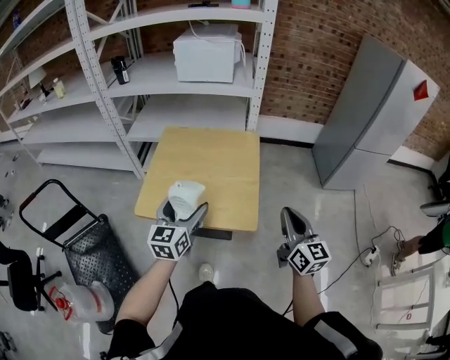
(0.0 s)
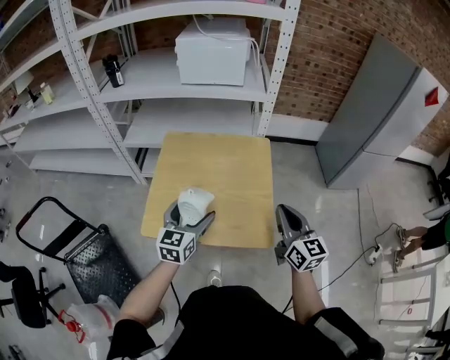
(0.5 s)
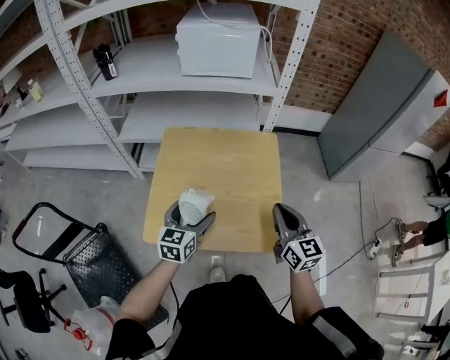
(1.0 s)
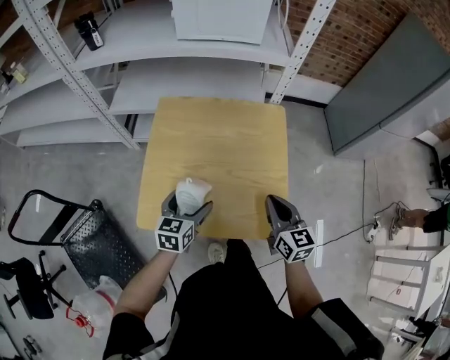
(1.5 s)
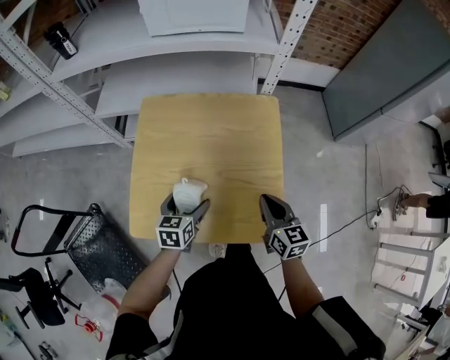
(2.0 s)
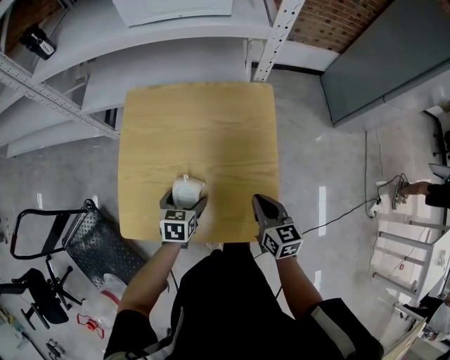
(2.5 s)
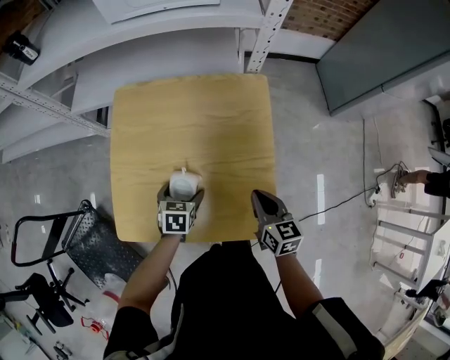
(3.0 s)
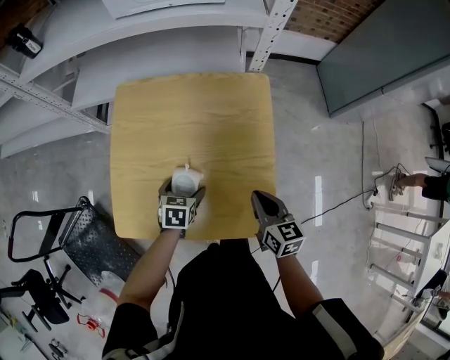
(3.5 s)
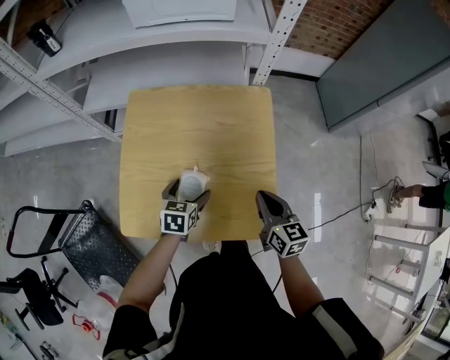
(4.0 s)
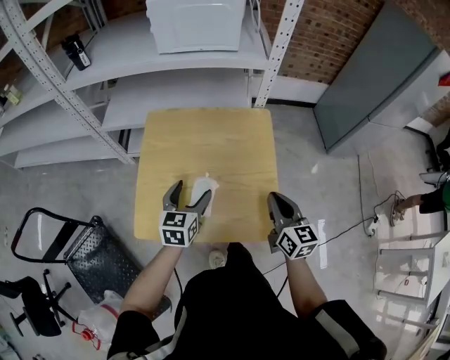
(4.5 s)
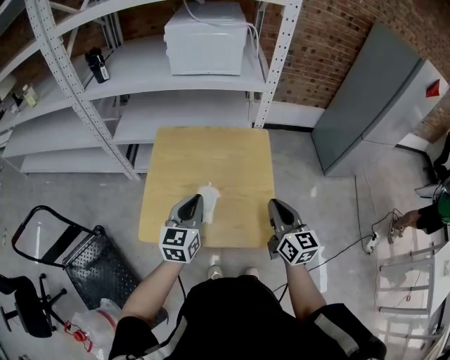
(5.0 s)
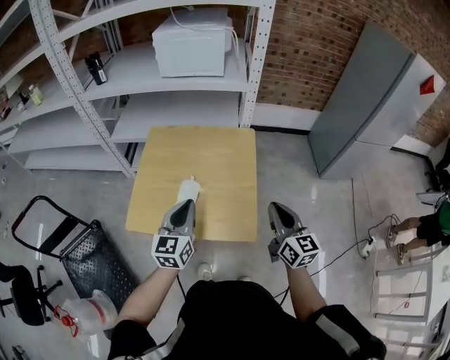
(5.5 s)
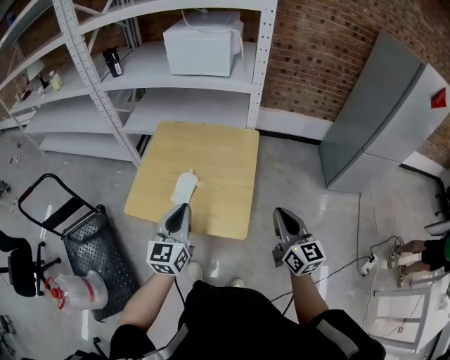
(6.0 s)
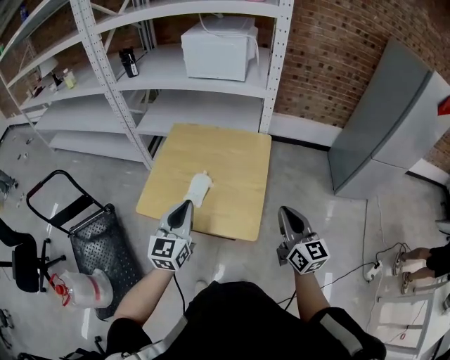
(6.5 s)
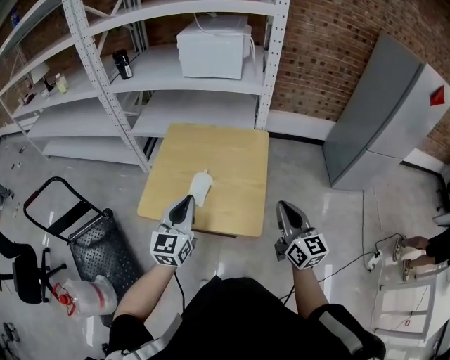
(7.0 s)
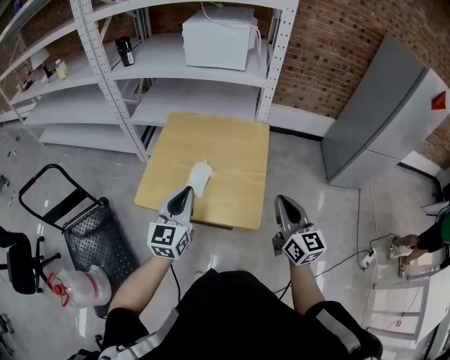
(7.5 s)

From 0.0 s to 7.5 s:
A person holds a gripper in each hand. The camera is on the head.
From 0.0 s to 2.0 s: The left gripper is displaced downward and forward by about 30 cm, and tilts its fingers some 30 degrees downward. Meanwhile the right gripper heads forward, downward and to the left, covering some 30 cm, and turns by some 20 degrees.
From 4.0 s to 5.5 s: The left gripper shifts roughly 25 cm upward and backward, tips its fingers upward by approximately 40 degrees, and closes. Meanwhile the right gripper goes some 20 cm upward, backward and to the right.
From 5.5 s to 7.5 s: The right gripper changes place by some 5 cm; the left gripper is displaced backward by roughly 5 cm.

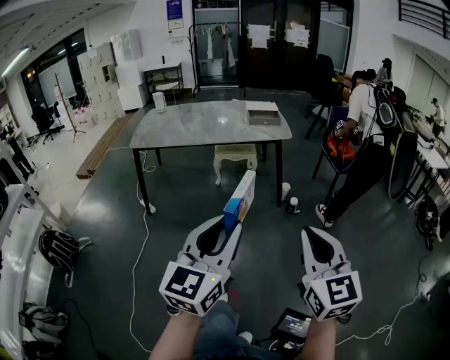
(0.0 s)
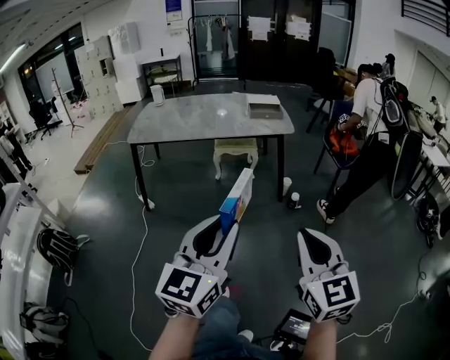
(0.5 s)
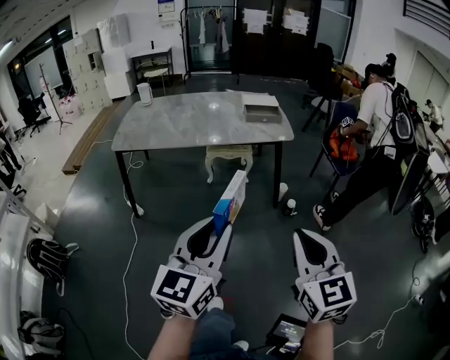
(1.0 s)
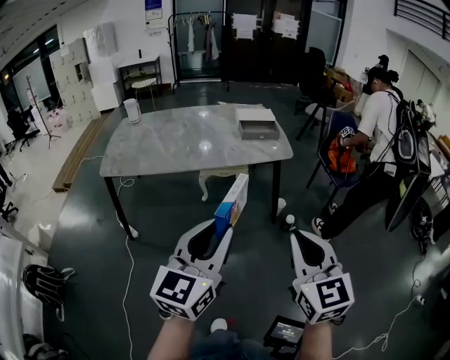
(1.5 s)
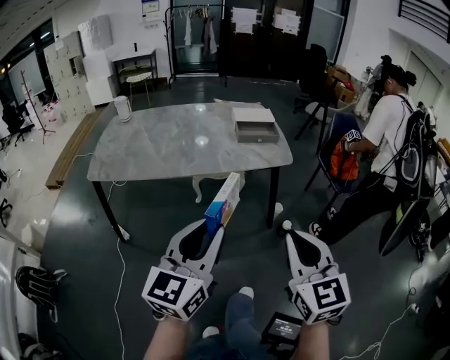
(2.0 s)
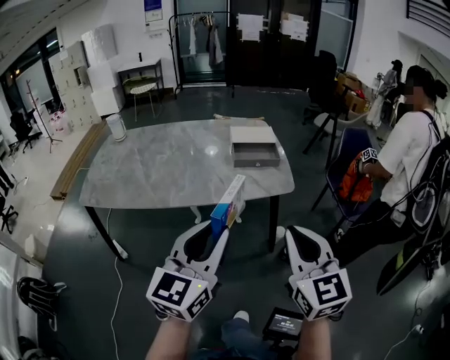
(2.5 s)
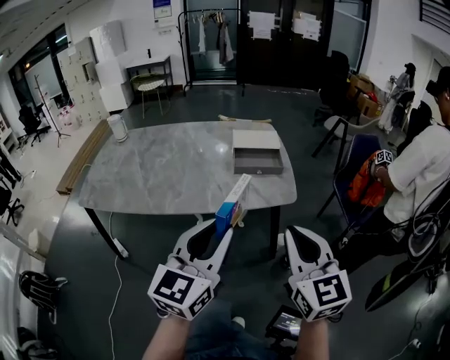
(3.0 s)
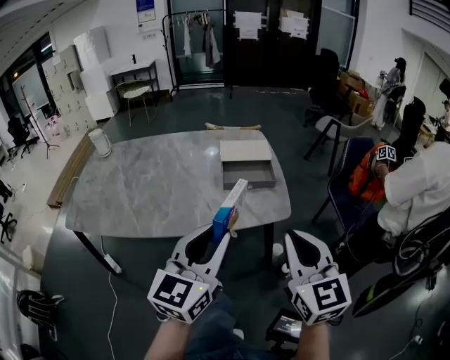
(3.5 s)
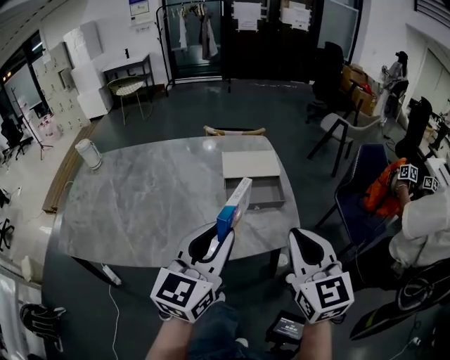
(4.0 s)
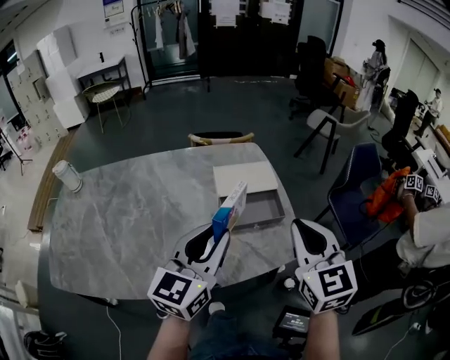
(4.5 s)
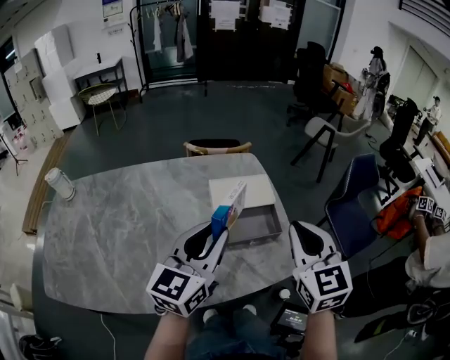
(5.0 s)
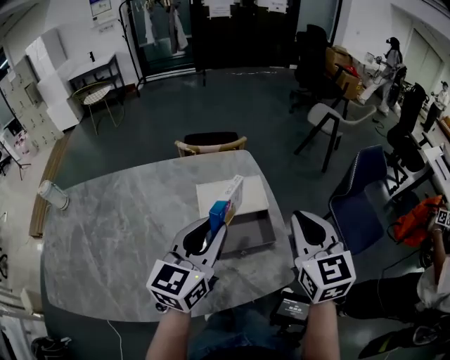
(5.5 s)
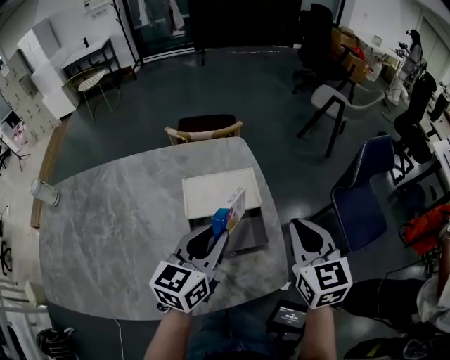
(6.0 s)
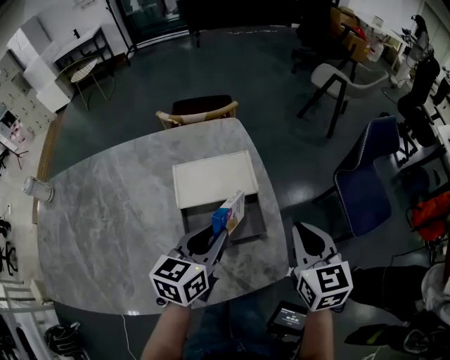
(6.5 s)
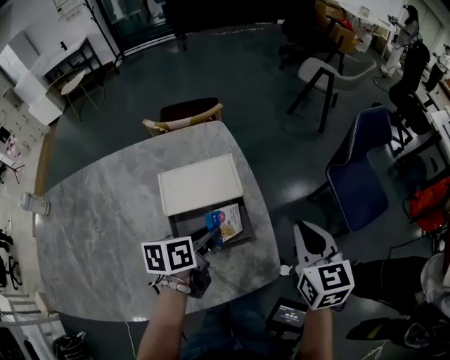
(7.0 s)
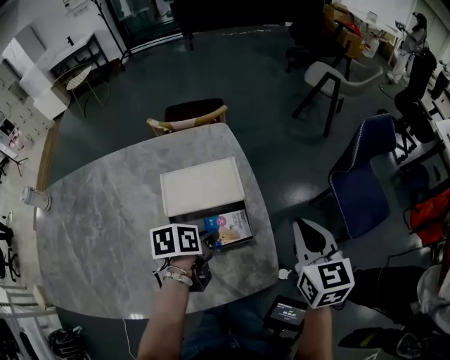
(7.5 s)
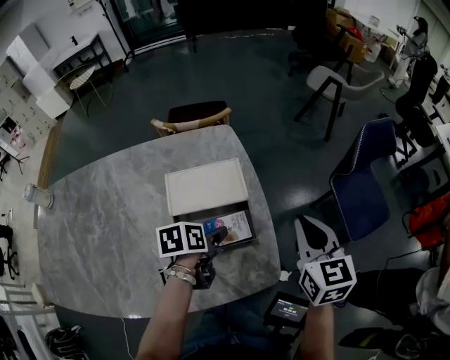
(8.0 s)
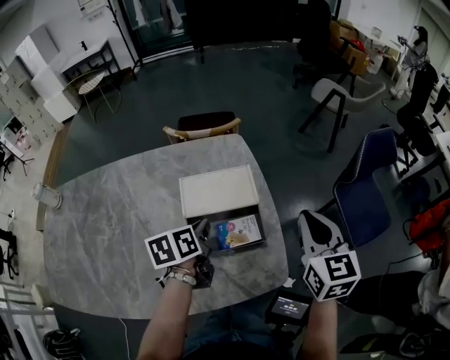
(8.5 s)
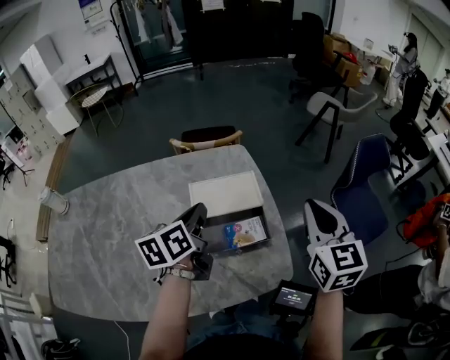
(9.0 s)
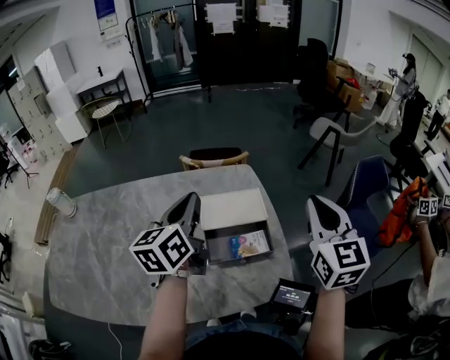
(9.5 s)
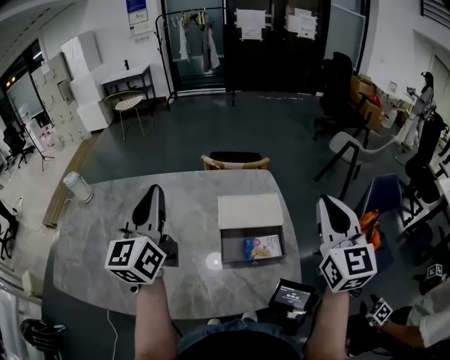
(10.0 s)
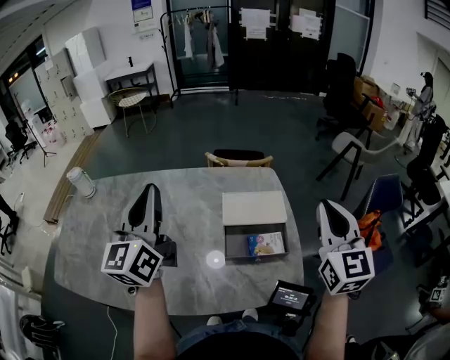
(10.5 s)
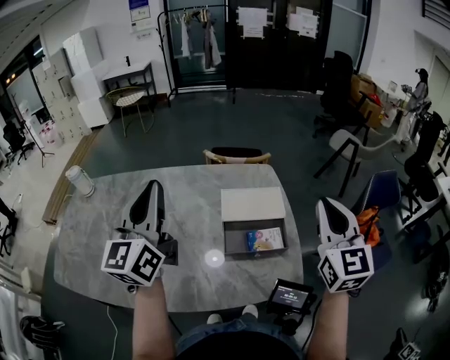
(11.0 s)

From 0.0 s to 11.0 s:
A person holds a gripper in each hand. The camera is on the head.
From 0.0 s to 2.0 s: Both grippers move forward, about 35 cm.
From 2.0 s to 3.5 s: Both grippers travel together forward, roughly 30 cm.
From 3.5 s to 5.5 s: The grippers both shift forward by roughly 35 cm.
From 5.5 s to 7.5 s: The left gripper heads downward, covering about 25 cm, and tips its fingers downward by some 40 degrees, while the right gripper moves downward and to the right, about 15 cm.
From 7.5 s to 9.0 s: The left gripper is displaced upward and to the left by approximately 20 cm, turns by about 40 degrees, and opens and closes again. The right gripper shifts roughly 10 cm upward.
From 9.0 s to 11.0 s: The left gripper travels upward, to the left and backward by some 25 cm, and points its fingers about 40 degrees further upward. The right gripper is displaced upward and to the left by roughly 10 cm.

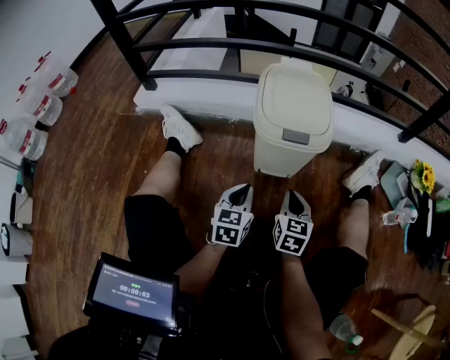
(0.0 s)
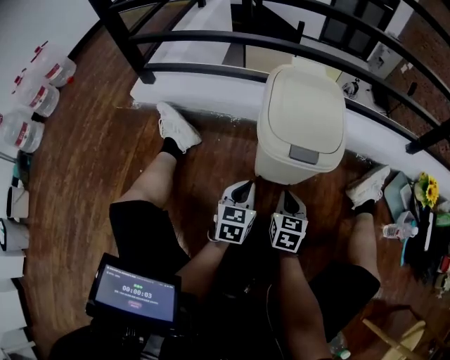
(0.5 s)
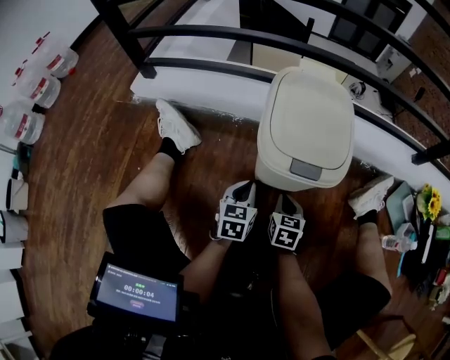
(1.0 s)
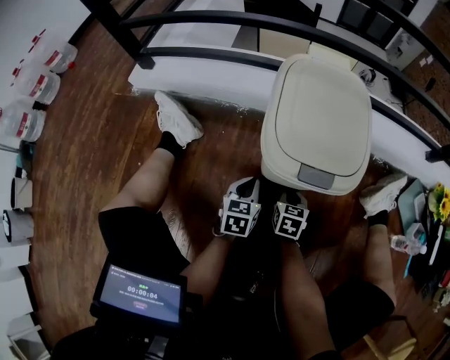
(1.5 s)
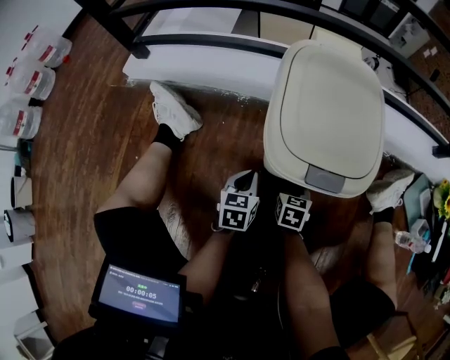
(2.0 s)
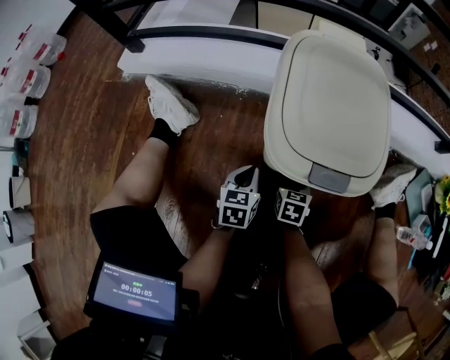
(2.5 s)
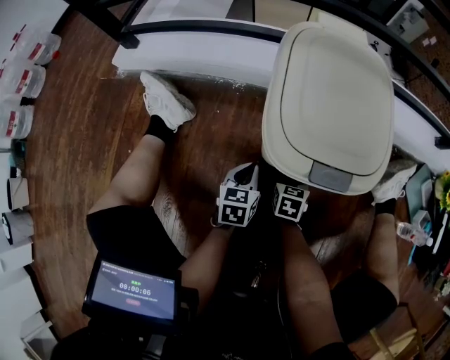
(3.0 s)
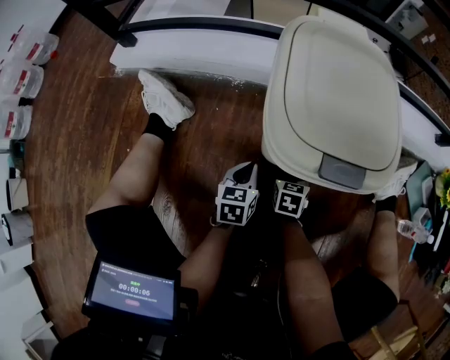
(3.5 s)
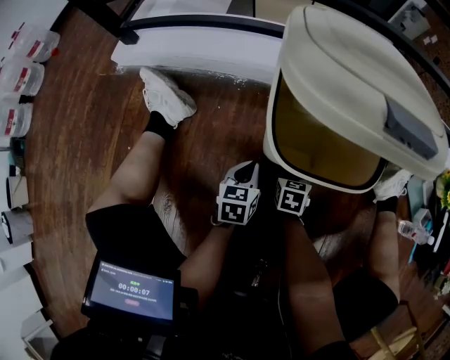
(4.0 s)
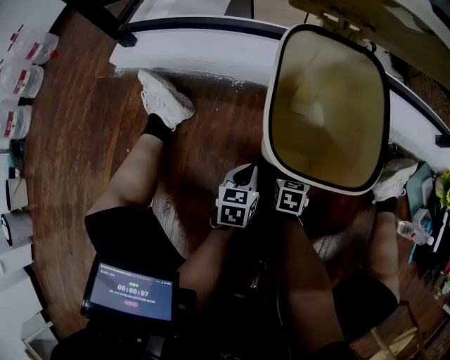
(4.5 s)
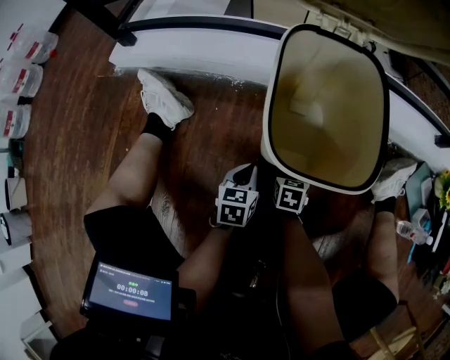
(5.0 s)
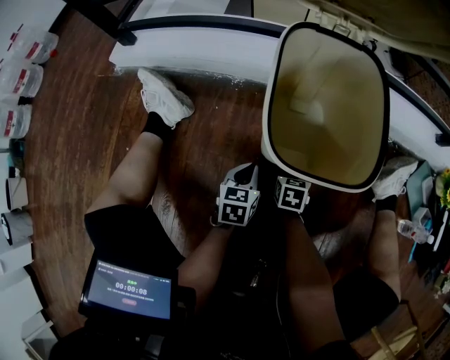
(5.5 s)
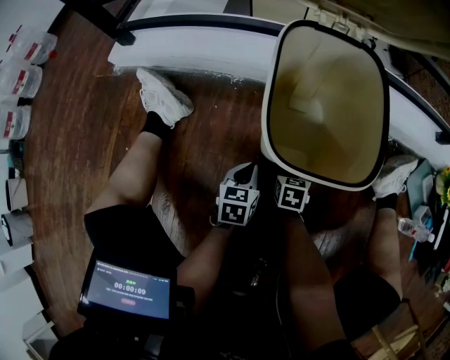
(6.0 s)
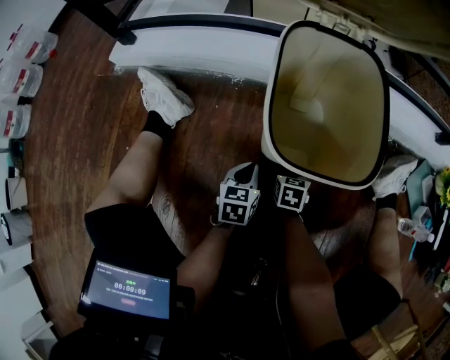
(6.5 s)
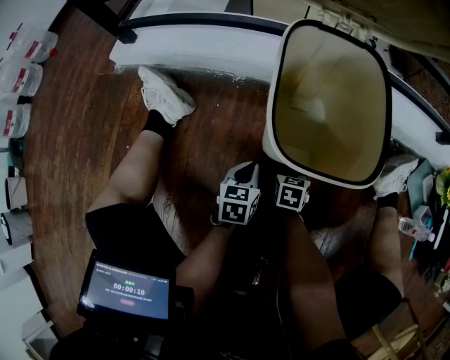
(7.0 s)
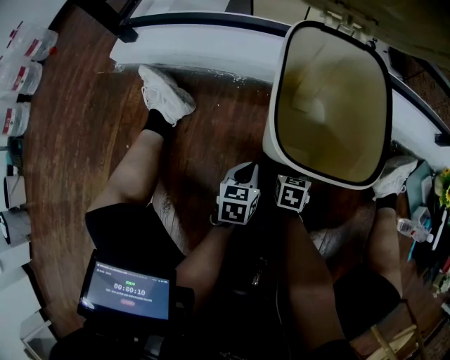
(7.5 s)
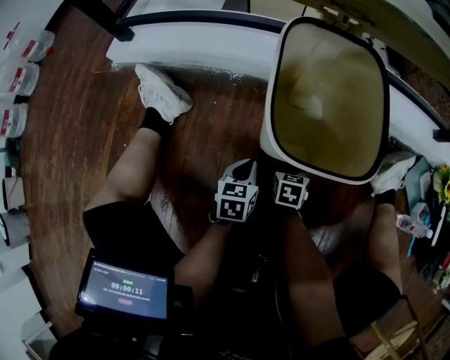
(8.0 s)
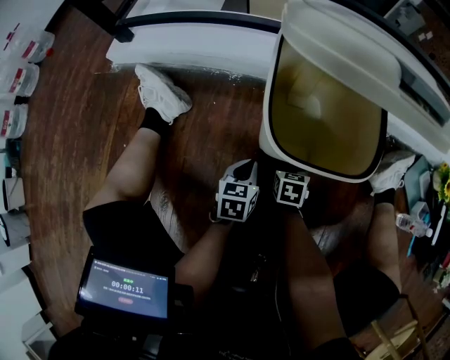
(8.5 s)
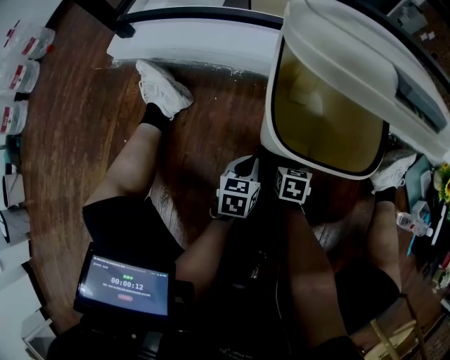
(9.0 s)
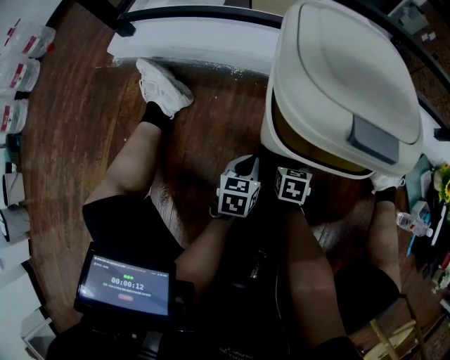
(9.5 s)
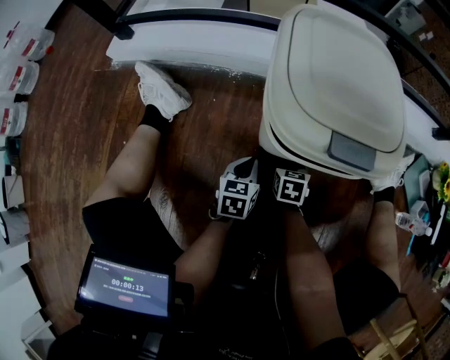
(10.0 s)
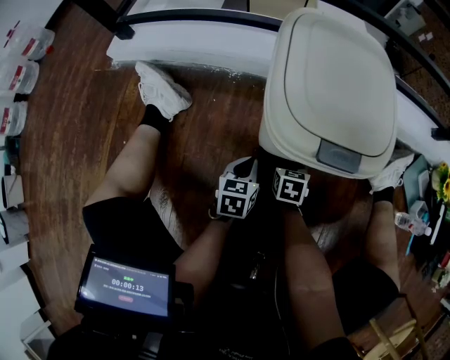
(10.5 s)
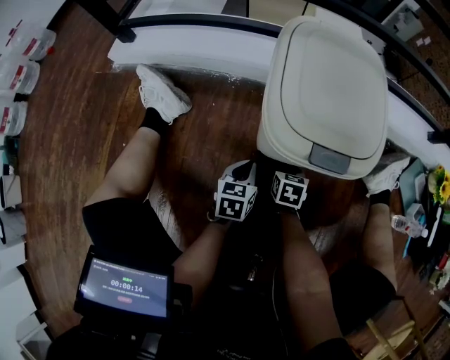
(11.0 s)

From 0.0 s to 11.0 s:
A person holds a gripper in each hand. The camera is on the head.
From 0.0 s to 2.0 s: The grippers both shift downward and forward by about 20 cm. The right gripper changes its angle by about 20 degrees.
From 2.0 s to 5.5 s: There are only small adjustments of the grippers.
From 5.5 s to 11.0 s: Both grippers stay about where they are.
